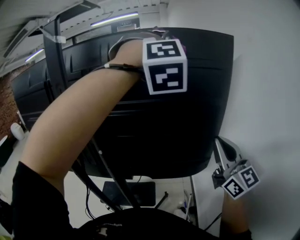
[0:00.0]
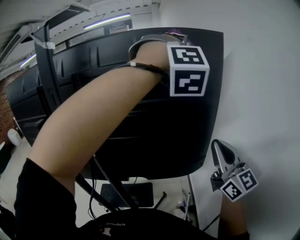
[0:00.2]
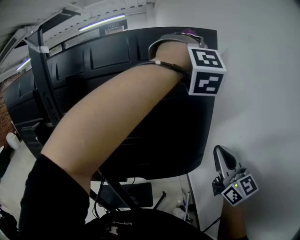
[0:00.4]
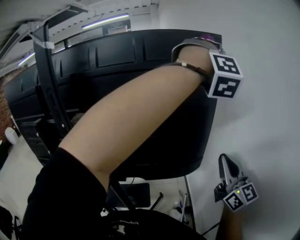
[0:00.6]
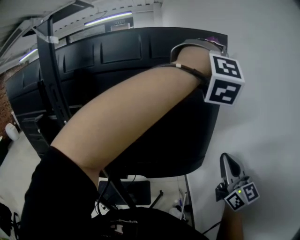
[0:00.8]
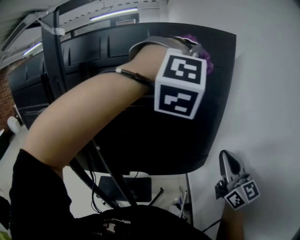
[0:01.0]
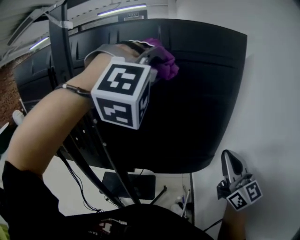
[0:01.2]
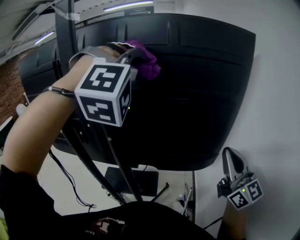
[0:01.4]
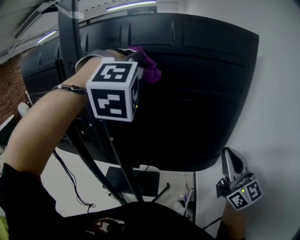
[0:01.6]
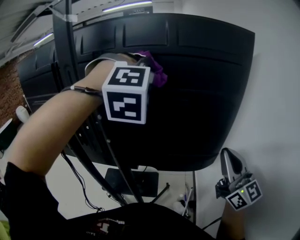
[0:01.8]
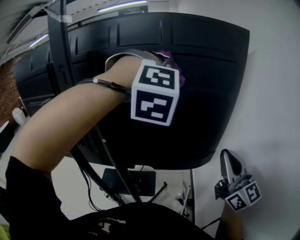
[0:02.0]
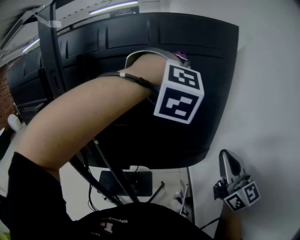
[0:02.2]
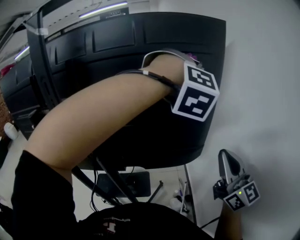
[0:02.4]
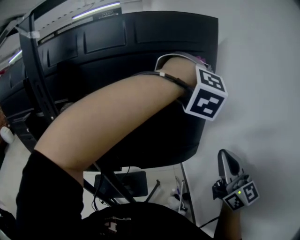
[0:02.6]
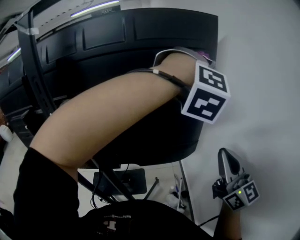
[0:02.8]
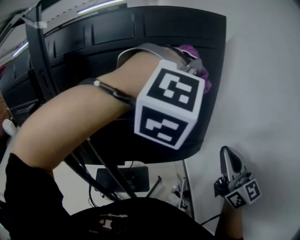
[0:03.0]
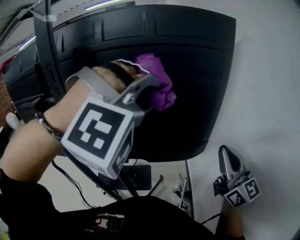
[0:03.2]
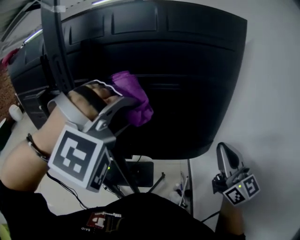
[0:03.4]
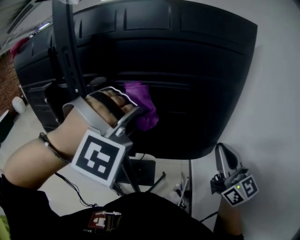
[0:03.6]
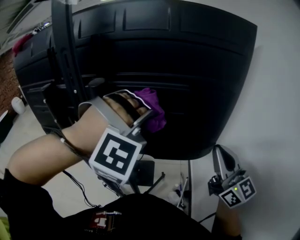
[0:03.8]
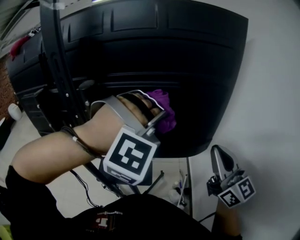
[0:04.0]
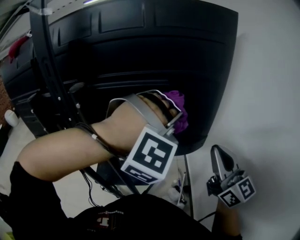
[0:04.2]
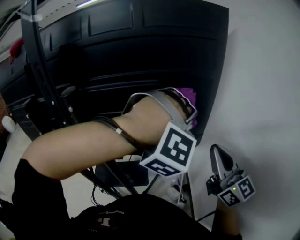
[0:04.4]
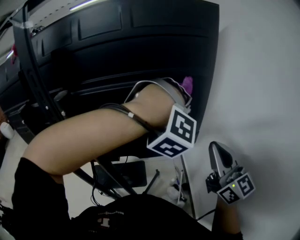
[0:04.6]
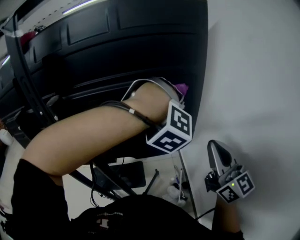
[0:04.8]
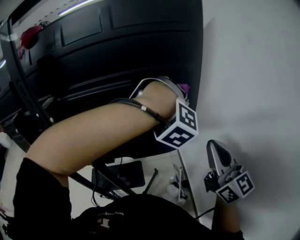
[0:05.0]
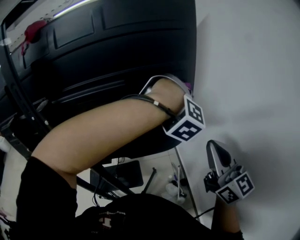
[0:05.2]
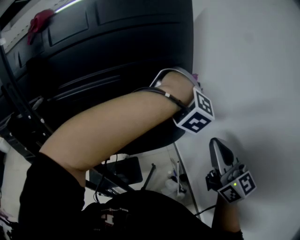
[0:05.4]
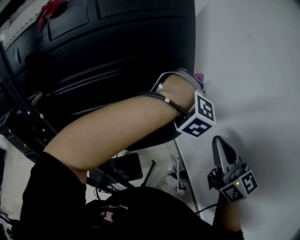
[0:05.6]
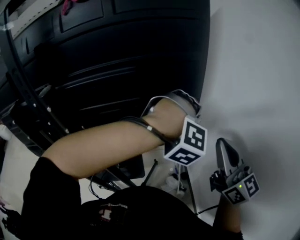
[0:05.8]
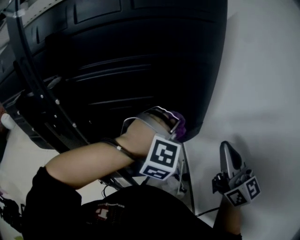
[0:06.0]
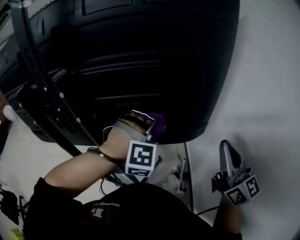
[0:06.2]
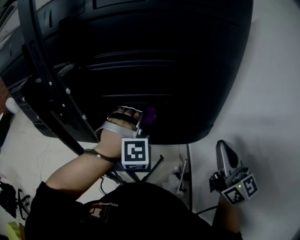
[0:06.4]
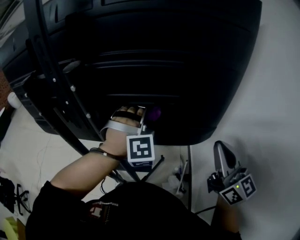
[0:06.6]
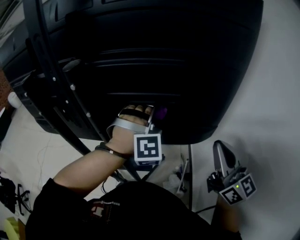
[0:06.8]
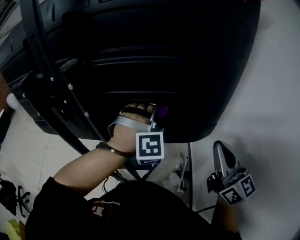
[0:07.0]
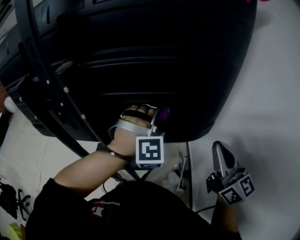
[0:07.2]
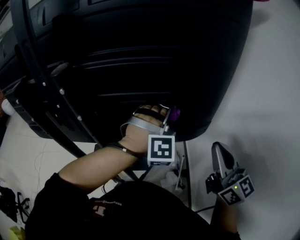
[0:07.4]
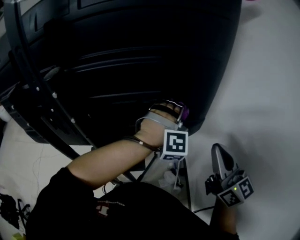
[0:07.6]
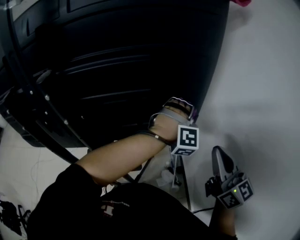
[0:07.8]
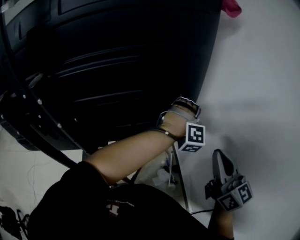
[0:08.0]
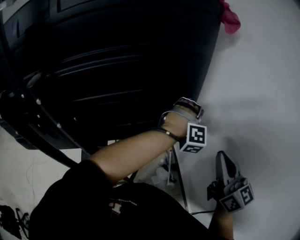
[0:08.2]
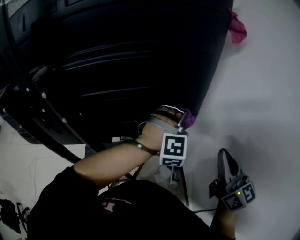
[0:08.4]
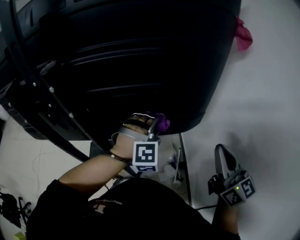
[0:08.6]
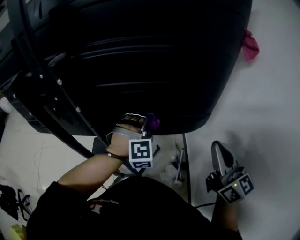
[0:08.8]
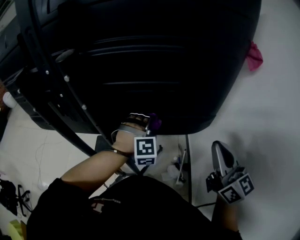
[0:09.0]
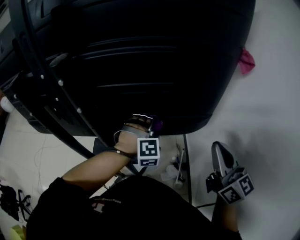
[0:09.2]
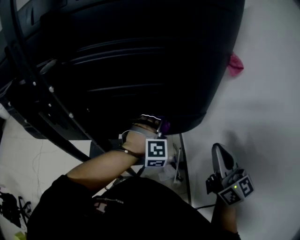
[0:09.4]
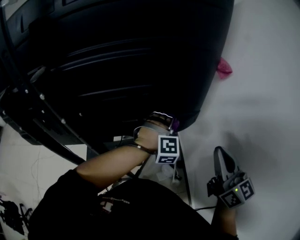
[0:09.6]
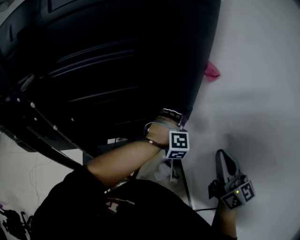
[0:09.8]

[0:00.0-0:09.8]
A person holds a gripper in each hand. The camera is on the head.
0:00.0 to 0:01.4: The left gripper shifts about 15 cm to the left and downward.
0:01.4 to 0:02.8: The right gripper moves backward, approximately 5 cm; the left gripper travels to the right by about 30 cm.
0:02.8 to 0:04.2: The left gripper is displaced to the left and downward by roughly 20 cm. Meanwhile the right gripper shifts roughly 5 cm to the left.
0:04.2 to 0:05.6: The right gripper travels to the right by roughly 5 cm. Meanwhile the left gripper moves to the right, some 20 cm.
0:05.6 to 0:07.0: The left gripper goes roughly 25 cm to the left, and rotates roughly 40 degrees. The right gripper heads to the left and forward, covering some 10 cm.
0:07.0 to 0:08.4: The left gripper goes about 15 cm to the right, and rotates about 30 degrees. Meanwhile the right gripper heads to the right and backward, covering about 10 cm.
0:08.4 to 0:09.8: The right gripper reaches about 5 cm to the left, then returns, while the left gripper moves downward, some 10 cm, and moves approximately 20 cm to the left and comes back.

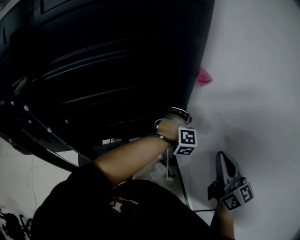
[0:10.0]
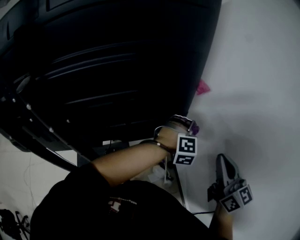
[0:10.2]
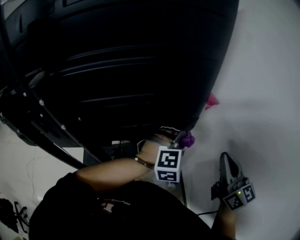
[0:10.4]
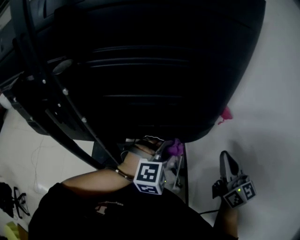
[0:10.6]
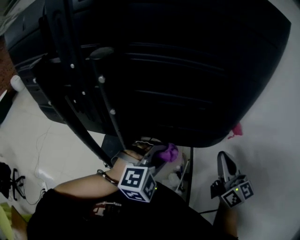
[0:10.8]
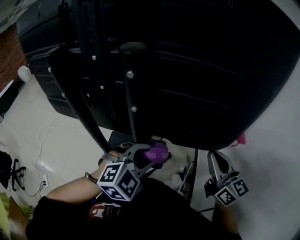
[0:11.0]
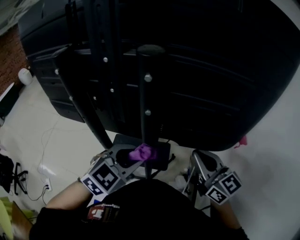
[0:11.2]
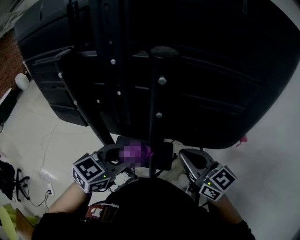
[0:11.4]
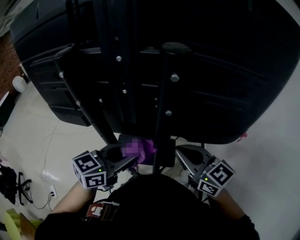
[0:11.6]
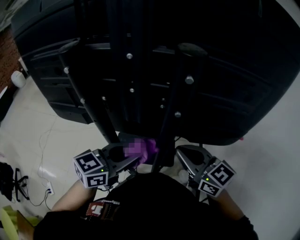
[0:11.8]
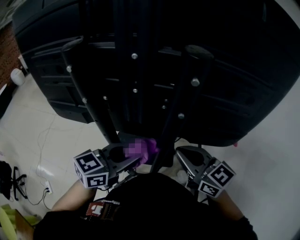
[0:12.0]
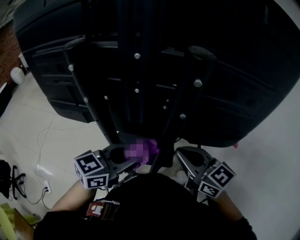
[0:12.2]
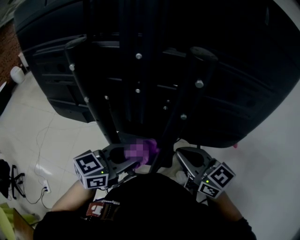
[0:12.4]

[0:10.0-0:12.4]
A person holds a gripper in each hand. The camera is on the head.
0:10.0 to 0:11.2: The left gripper travels to the left and backward by approximately 50 cm, and twists some 70 degrees counterclockwise, seen from behind, while the right gripper goes roughly 30 cm to the left, and rotates about 40 degrees.
0:11.2 to 0:12.4: The right gripper shifts approximately 10 cm to the left. The left gripper heads to the left, covering roughly 5 cm, and swivels about 40 degrees.

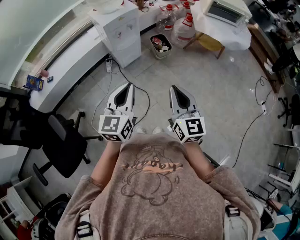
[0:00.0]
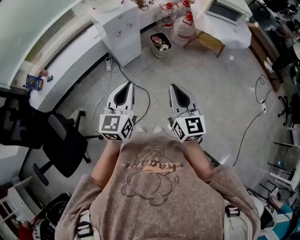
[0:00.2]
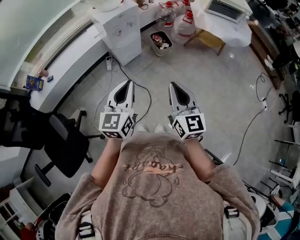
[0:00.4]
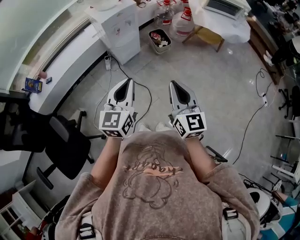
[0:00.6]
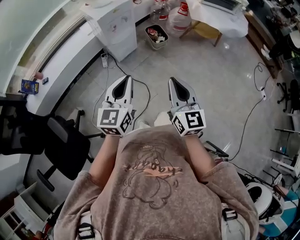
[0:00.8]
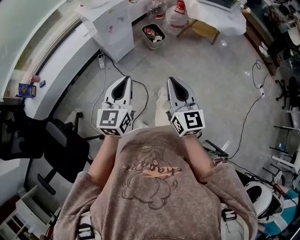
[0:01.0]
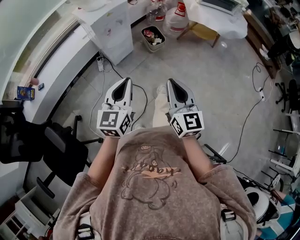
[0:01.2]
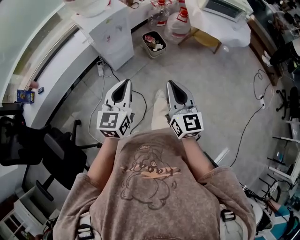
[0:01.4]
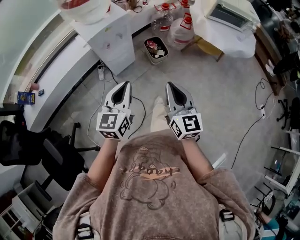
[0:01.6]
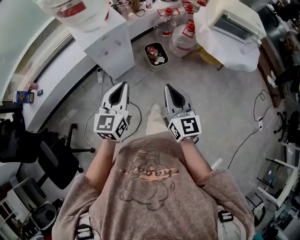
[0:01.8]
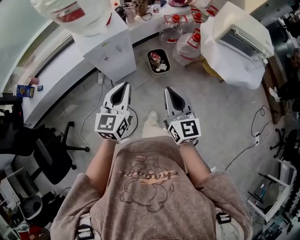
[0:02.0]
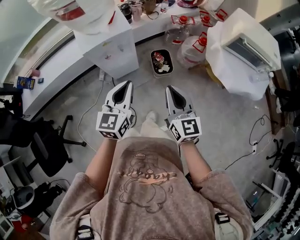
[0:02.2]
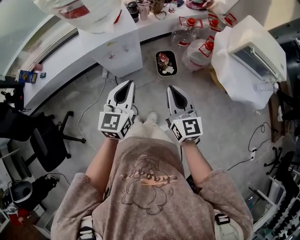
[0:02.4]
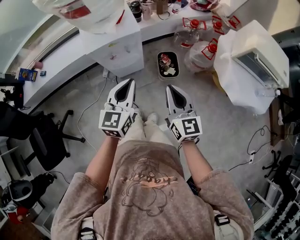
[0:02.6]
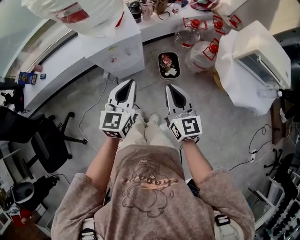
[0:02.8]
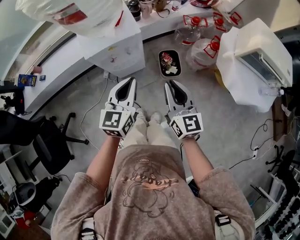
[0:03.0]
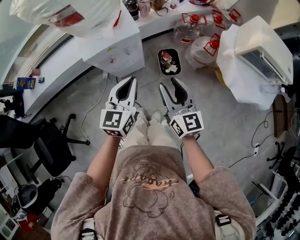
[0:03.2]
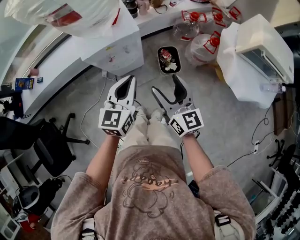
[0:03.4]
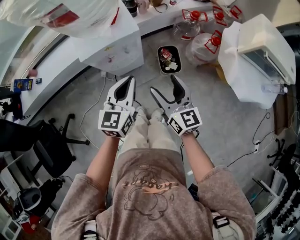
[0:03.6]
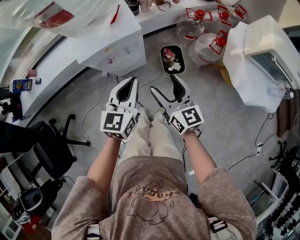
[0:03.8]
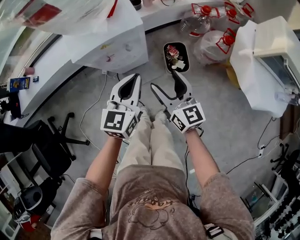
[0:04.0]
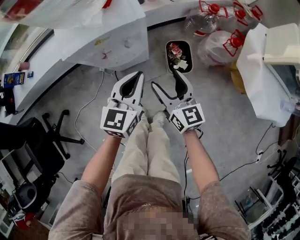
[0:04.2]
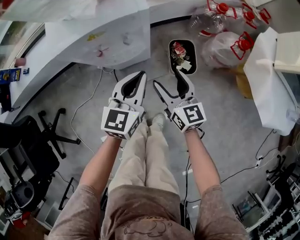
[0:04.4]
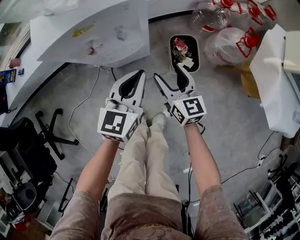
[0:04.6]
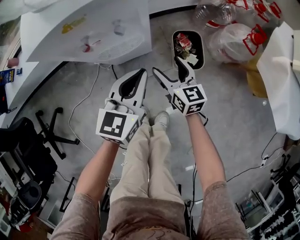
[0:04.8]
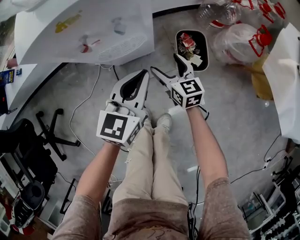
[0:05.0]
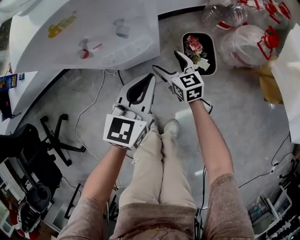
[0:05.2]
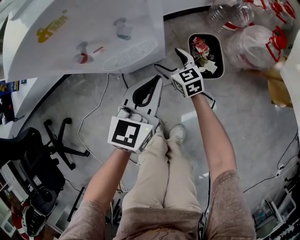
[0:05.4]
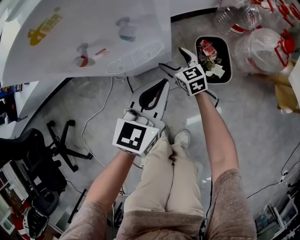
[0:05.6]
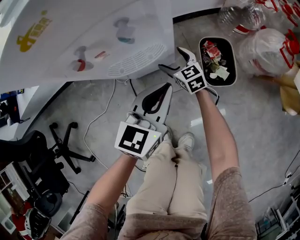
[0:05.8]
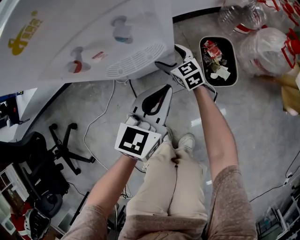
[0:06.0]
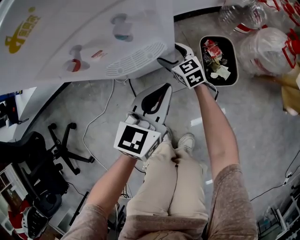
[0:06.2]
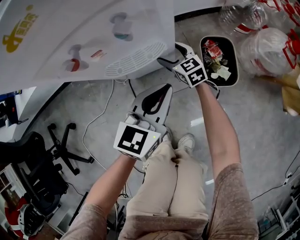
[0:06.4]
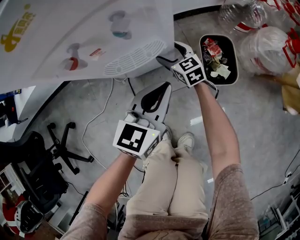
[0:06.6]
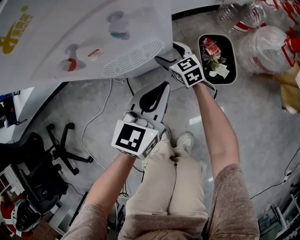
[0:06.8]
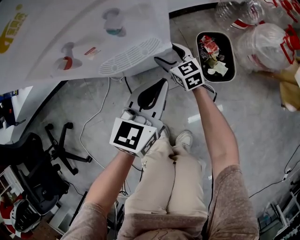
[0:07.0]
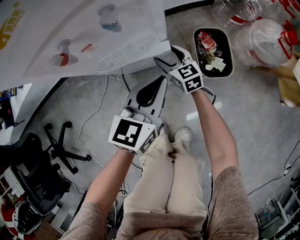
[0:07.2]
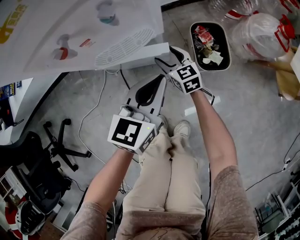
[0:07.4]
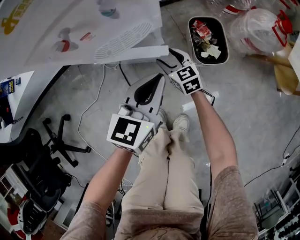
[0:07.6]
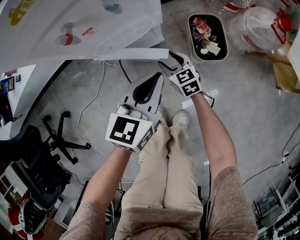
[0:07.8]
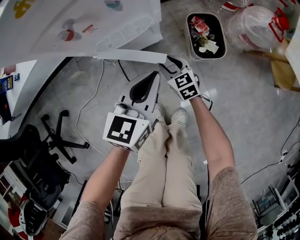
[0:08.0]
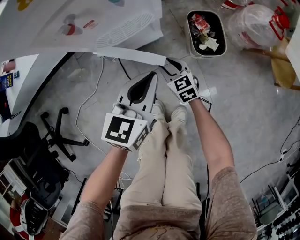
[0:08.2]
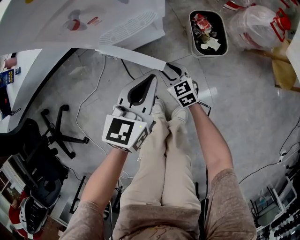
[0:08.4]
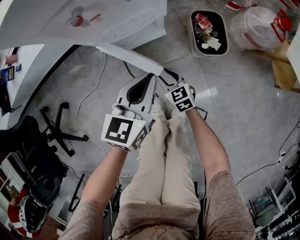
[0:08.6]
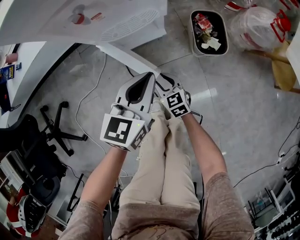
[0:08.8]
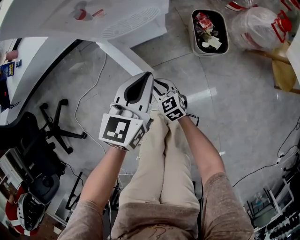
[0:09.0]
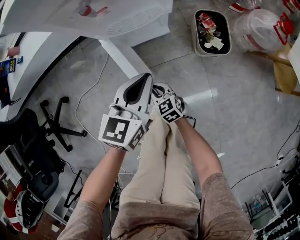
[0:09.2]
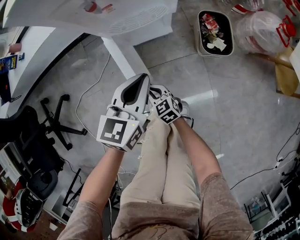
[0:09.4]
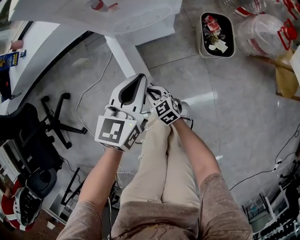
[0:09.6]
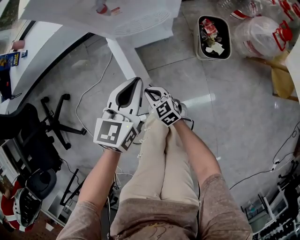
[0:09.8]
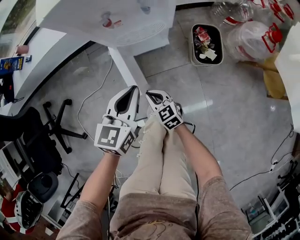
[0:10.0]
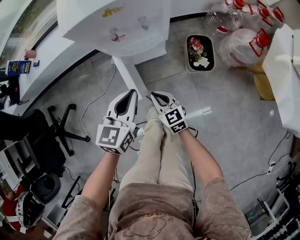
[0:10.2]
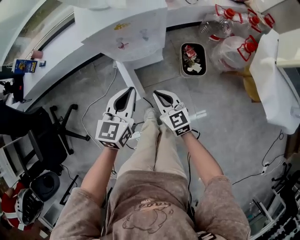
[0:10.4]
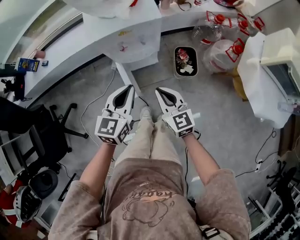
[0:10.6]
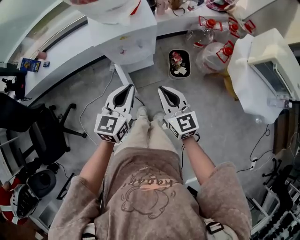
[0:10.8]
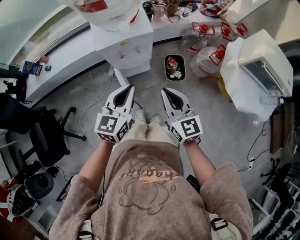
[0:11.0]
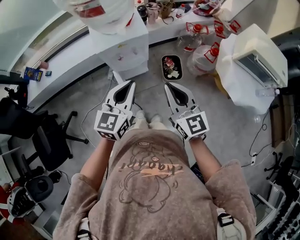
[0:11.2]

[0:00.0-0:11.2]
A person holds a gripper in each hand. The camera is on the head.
0:00.0 to 0:01.6: Both grippers travel together forward, about 20 cm.
0:01.6 to 0:03.2: The grippers both shift forward by some 25 cm. The right gripper changes its angle by roughly 20 degrees, and opens.
0:03.2 to 0:04.8: The grippers both shift downward by some 30 cm. The right gripper opens up.
0:04.8 to 0:06.4: The left gripper moves downward, about 15 cm. The right gripper is displaced downward and forward by about 25 cm, and turns by approximately 20 degrees.
0:06.4 to 0:08.0: The right gripper moves backward, approximately 15 cm, and closes; the left gripper moves backward, some 5 cm.
0:08.0 to 0:09.6: The left gripper heads to the left, covering about 10 cm. Meanwhile the right gripper moves backward and to the left, about 20 cm, and closes.
0:09.6 to 0:11.2: The right gripper shifts roughly 70 cm upward, and tips its fingers upward by about 30 degrees. Meanwhile the left gripper heads upward, covering roughly 40 cm.
